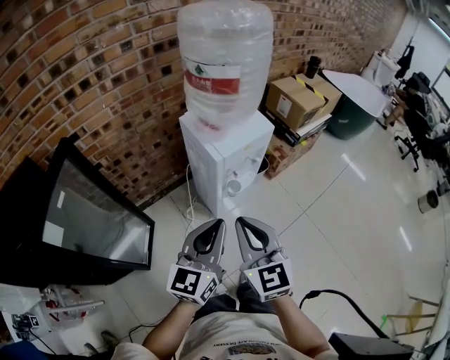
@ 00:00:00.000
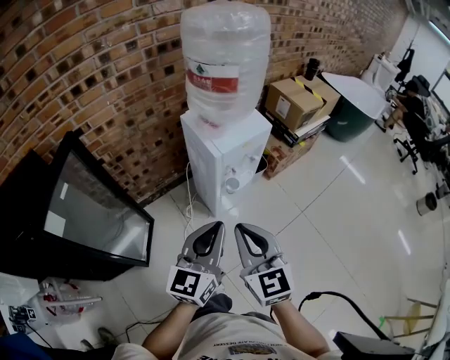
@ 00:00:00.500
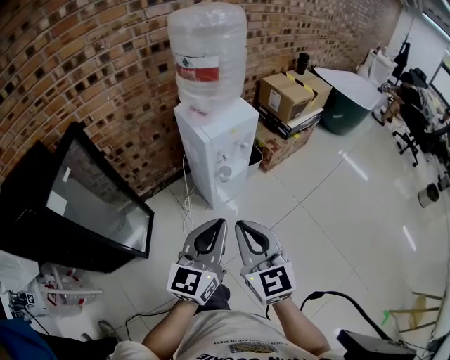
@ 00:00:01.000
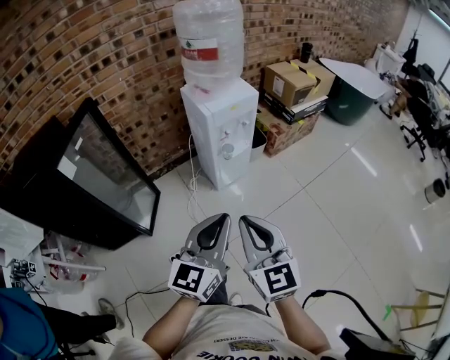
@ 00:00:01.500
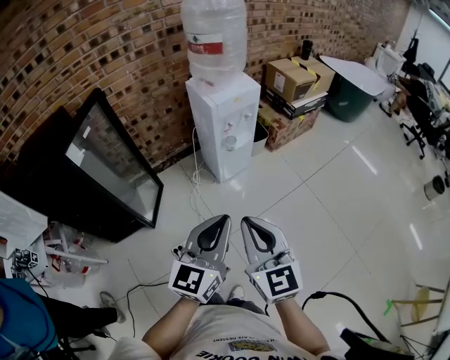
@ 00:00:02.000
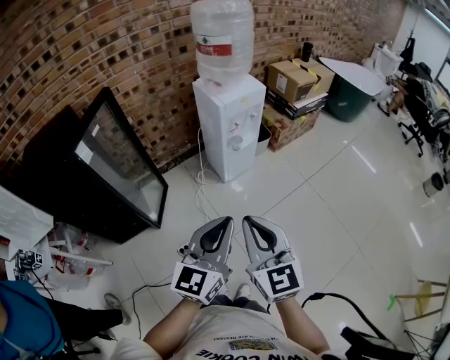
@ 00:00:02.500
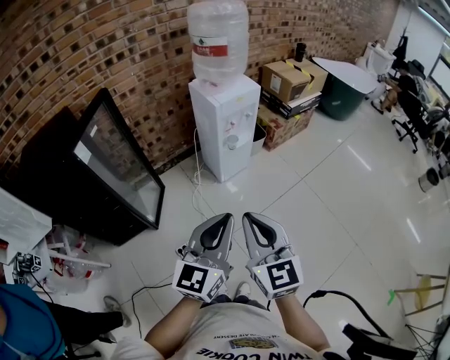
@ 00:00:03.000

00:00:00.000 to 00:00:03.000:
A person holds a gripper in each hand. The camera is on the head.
00:00:00.000 to 00:00:01.500: The left gripper goes roughly 25 cm backward and to the right. The right gripper goes approximately 20 cm backward.
00:00:01.500 to 00:00:03.000: The grippers both shift backward and to the left by some 10 cm.

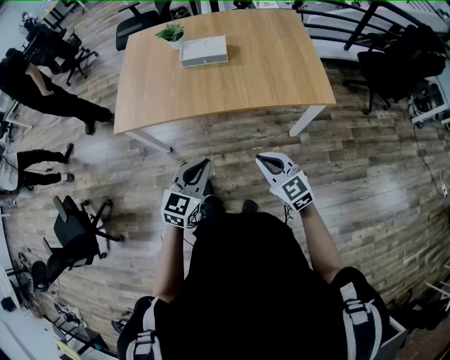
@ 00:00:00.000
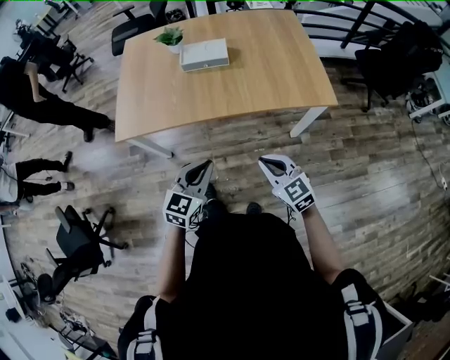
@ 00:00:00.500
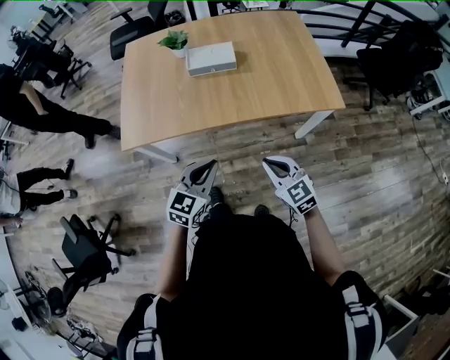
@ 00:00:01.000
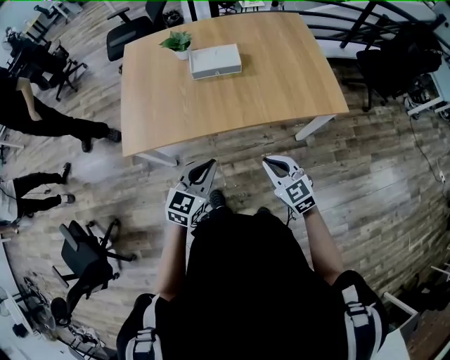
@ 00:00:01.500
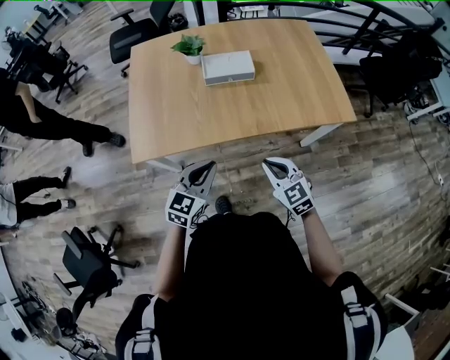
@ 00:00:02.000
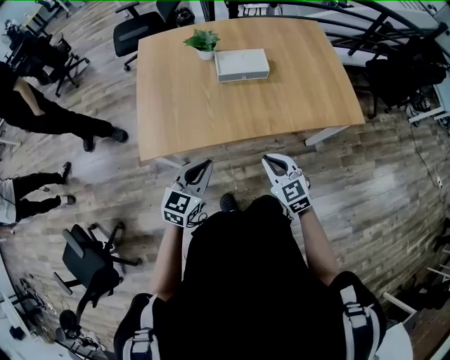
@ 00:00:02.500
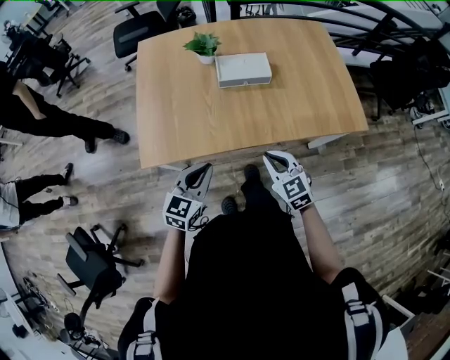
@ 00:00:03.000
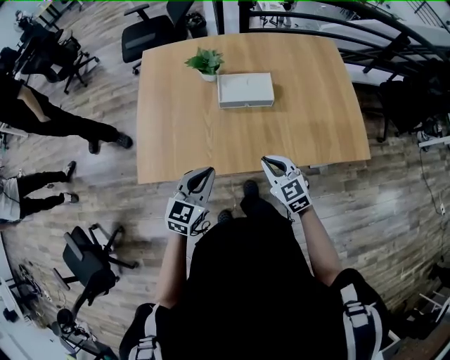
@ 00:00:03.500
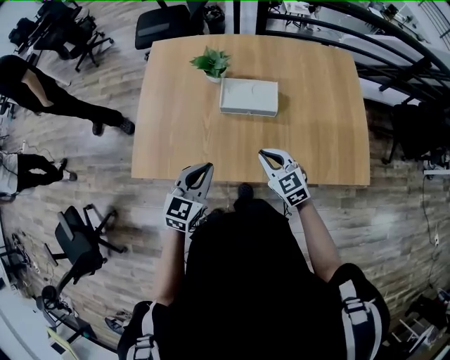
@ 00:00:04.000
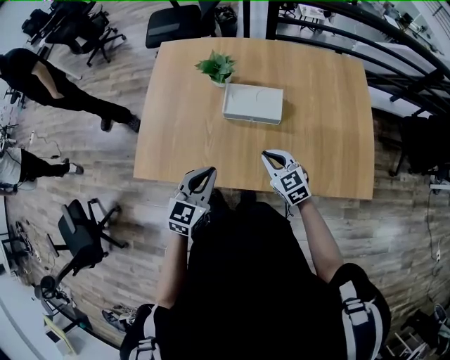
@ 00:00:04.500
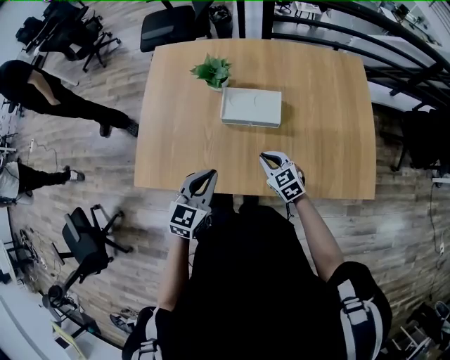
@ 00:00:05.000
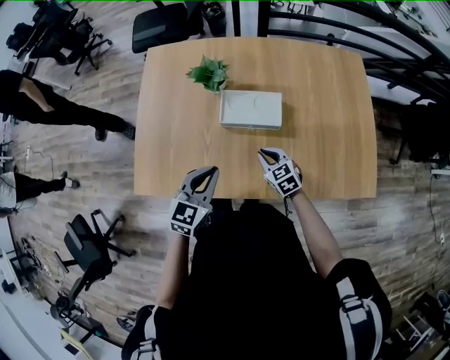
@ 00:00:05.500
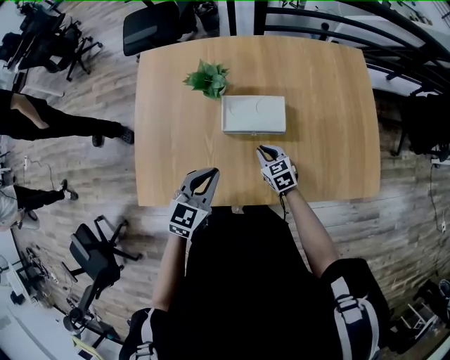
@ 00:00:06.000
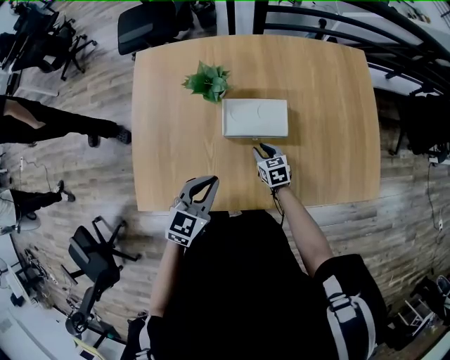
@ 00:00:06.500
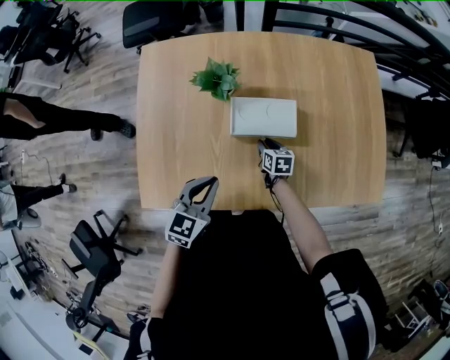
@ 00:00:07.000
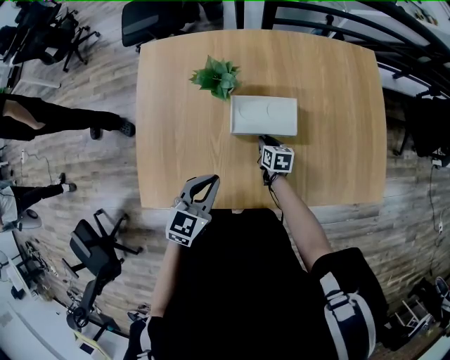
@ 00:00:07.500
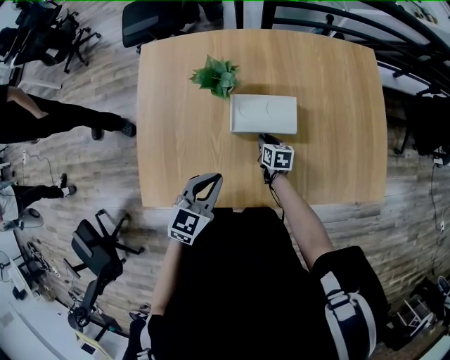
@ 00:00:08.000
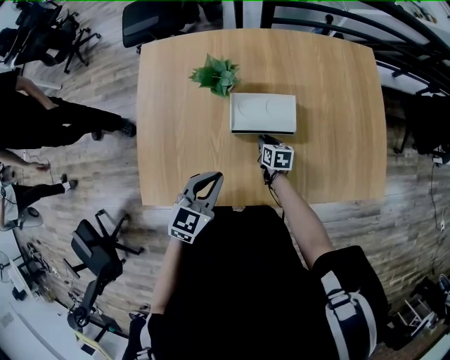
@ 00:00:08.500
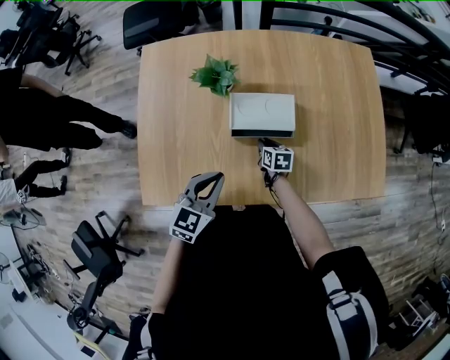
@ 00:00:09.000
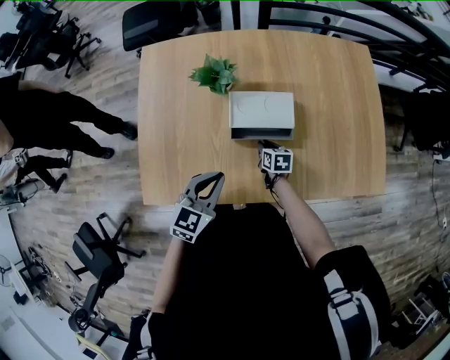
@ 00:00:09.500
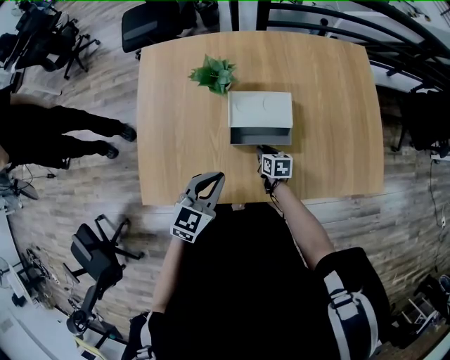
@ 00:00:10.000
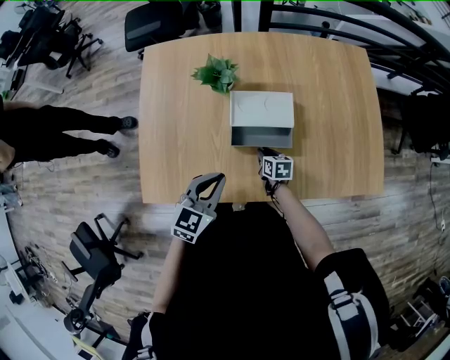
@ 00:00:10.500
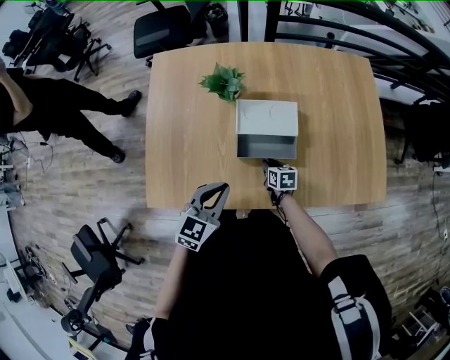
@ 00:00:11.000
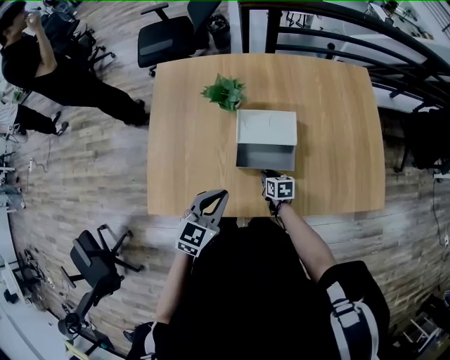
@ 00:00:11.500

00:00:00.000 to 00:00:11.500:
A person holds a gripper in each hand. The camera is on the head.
00:00:00.000 to 00:00:02.000: Both grippers move to the left and forward, some 20 cm.
00:00:02.000 to 00:00:04.000: Both grippers travel together forward, roughly 25 cm.
00:00:04.000 to 00:00:06.000: The left gripper goes about 15 cm forward. The right gripper goes about 20 cm forward and downward, and swivels approximately 20 degrees.
00:00:06.000 to 00:00:07.500: The right gripper shifts roughly 10 cm downward and forward, and turns by some 30 degrees.
00:00:07.500 to 00:00:09.500: There are only small adjustments of the grippers.
00:00:09.500 to 00:00:11.500: The right gripper is displaced backward by about 5 cm.

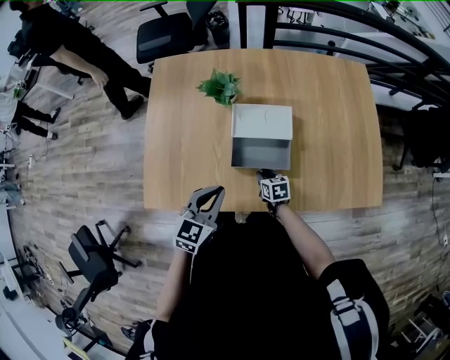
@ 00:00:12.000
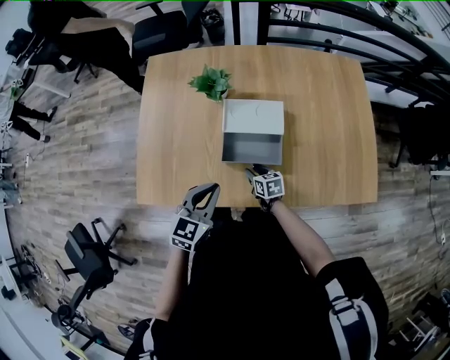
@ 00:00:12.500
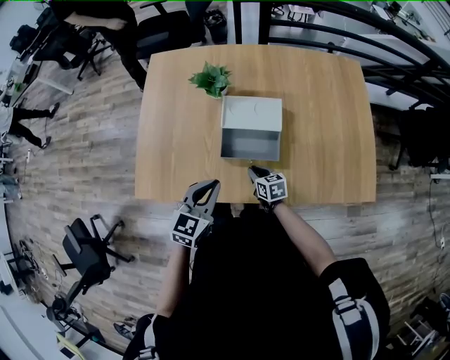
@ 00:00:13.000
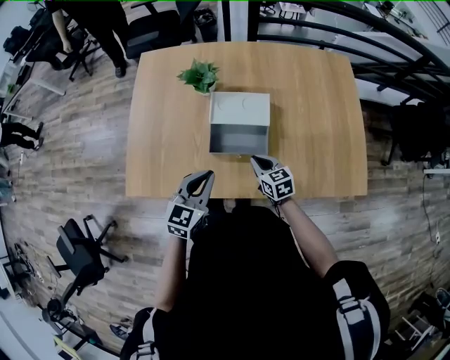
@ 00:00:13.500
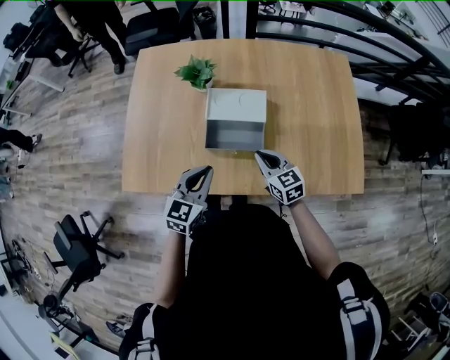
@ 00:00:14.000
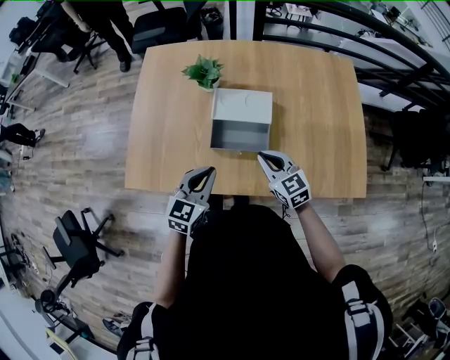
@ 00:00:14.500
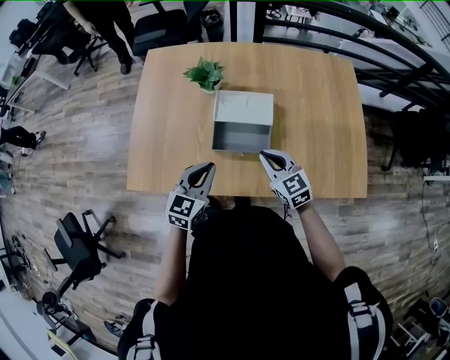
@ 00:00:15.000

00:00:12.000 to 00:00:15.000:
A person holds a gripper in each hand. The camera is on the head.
00:00:12.000 to 00:00:13.500: The left gripper changes place by some 5 cm. Meanwhile the right gripper moves upward and to the right, approximately 10 cm, and turns by approximately 20 degrees.
00:00:13.500 to 00:00:15.000: The right gripper moves upward, approximately 10 cm, and swivels some 20 degrees.

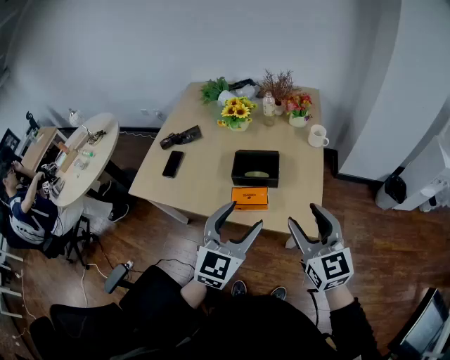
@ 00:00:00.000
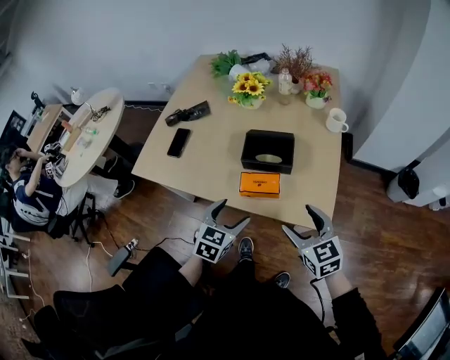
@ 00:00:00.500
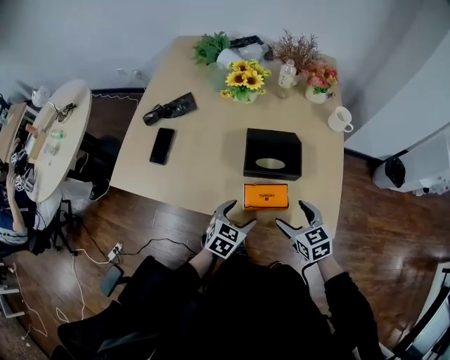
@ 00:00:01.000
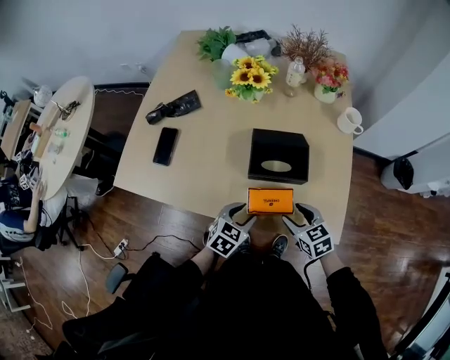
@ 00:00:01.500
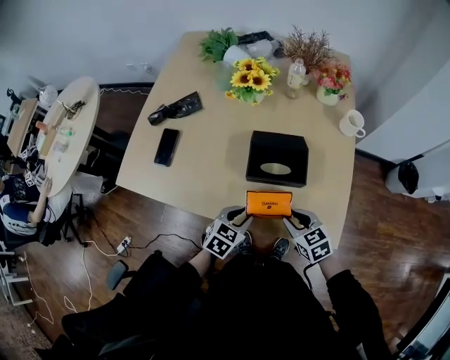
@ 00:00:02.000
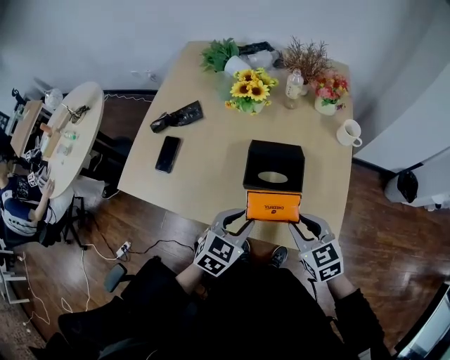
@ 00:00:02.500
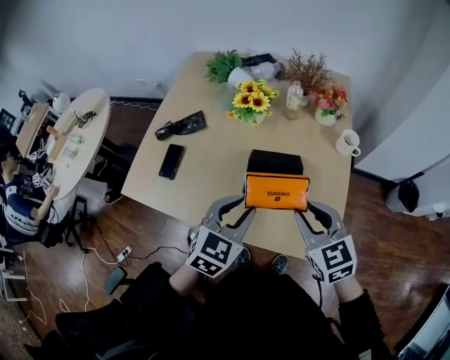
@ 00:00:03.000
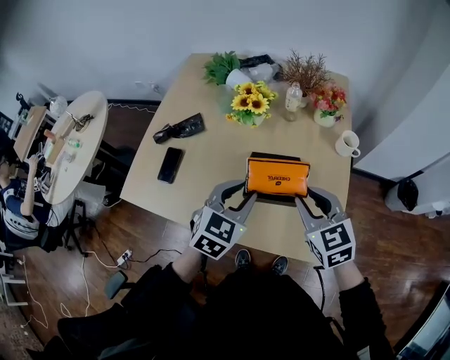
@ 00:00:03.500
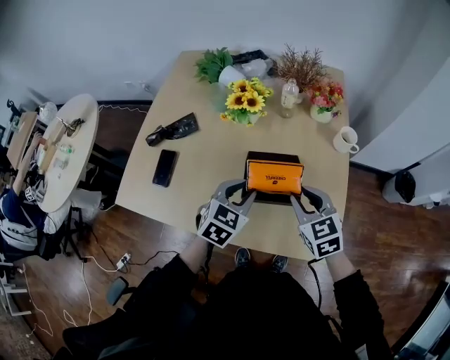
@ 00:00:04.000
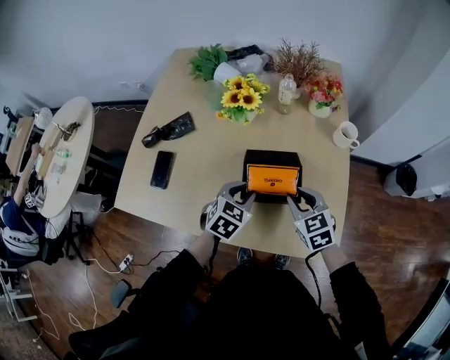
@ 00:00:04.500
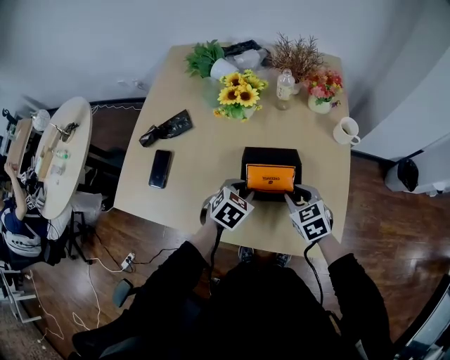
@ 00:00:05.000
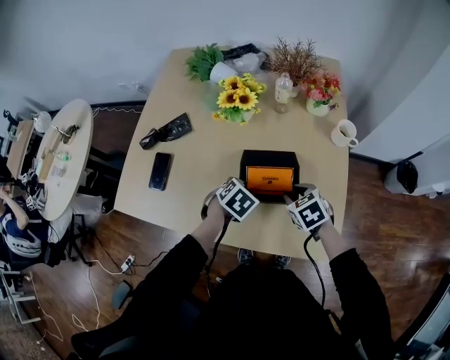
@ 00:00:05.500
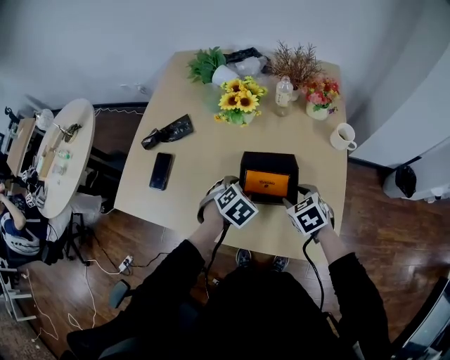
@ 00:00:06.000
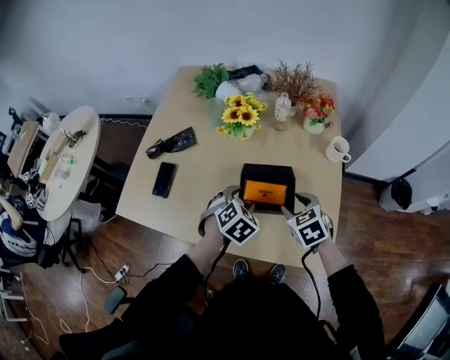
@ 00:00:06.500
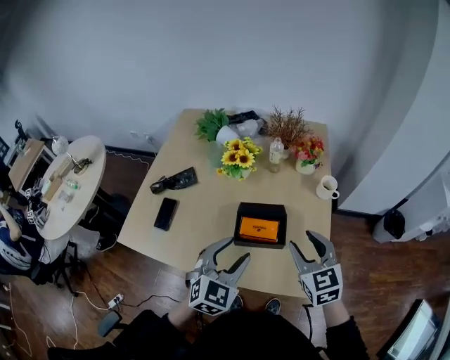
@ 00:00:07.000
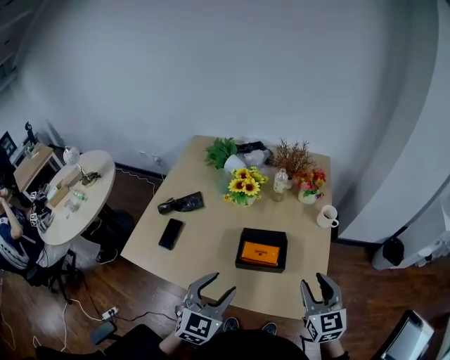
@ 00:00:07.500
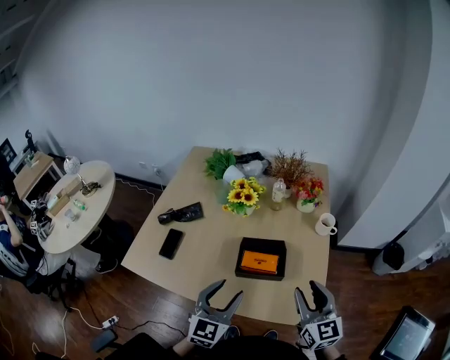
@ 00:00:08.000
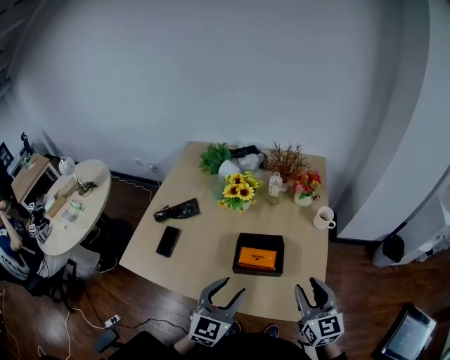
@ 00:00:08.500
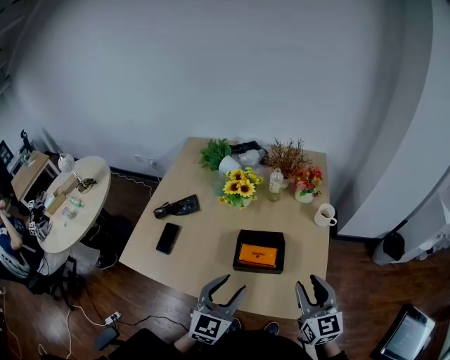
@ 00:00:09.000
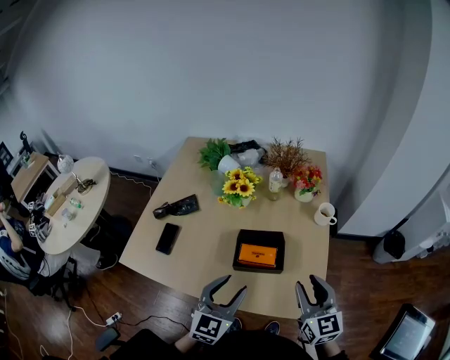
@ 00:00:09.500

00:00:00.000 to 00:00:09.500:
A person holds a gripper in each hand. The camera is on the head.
00:00:00.000 to 00:00:02.000: Both grippers move downward and forward, approximately 35 cm. The left gripper tips its fingers downward by some 30 degrees, and closes; the right gripper points its fingers some 40 degrees further downward, and opens and closes again.
00:00:02.000 to 00:00:04.000: The two grippers go roughly 20 cm upward and forward.
00:00:04.000 to 00:00:05.500: The two grippers go some 10 cm downward. The right gripper rotates some 30 degrees; the left gripper points its fingers approximately 30 degrees further downward.
00:00:05.500 to 00:00:07.500: The grippers both shift upward and backward by roughly 25 cm. The left gripper tips its fingers upward by approximately 50 degrees. The right gripper tilts its fingers some 40 degrees upward.
00:00:07.500 to 00:00:09.500: The grippers make only small movements.
